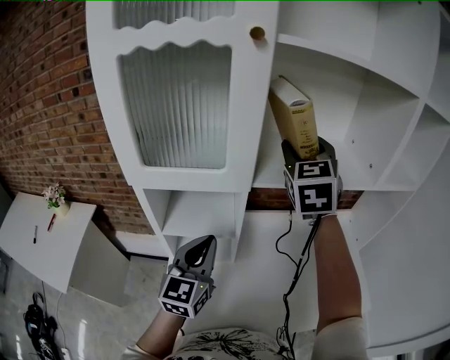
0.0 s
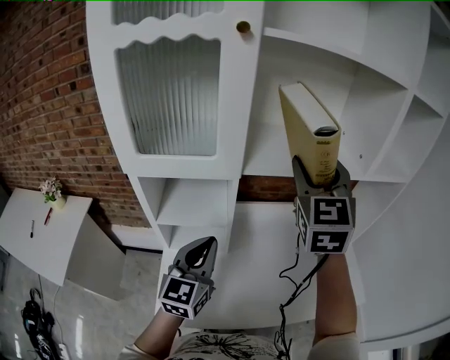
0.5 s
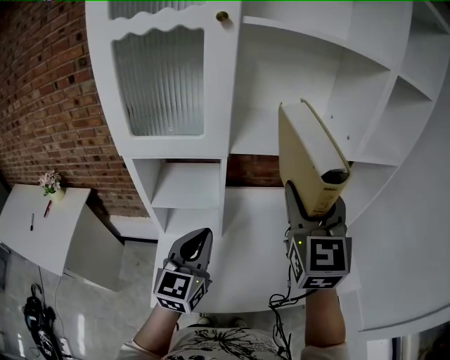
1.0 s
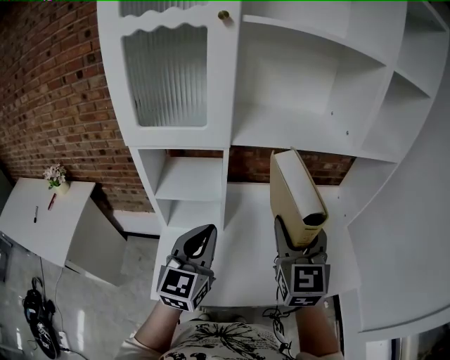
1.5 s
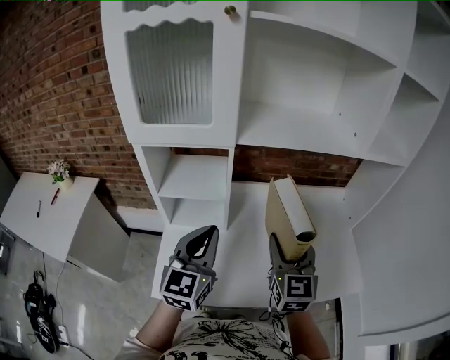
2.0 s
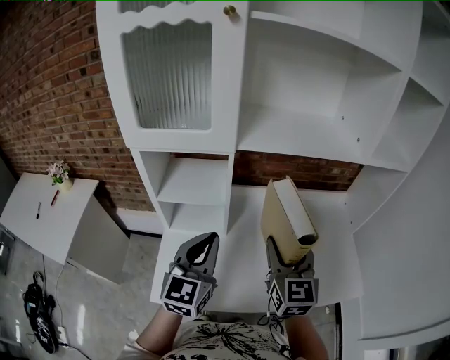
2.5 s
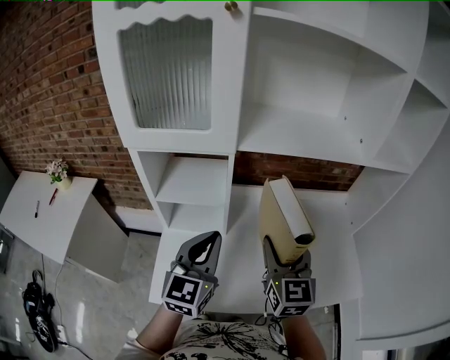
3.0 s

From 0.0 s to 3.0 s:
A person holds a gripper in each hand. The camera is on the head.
From 0.0 s to 1.5 s: The right gripper travels backward and downward by roughly 30 cm. Meanwhile the left gripper is displaced backward and to the right by some 15 cm.
From 1.5 s to 3.0 s: The right gripper goes some 10 cm downward.

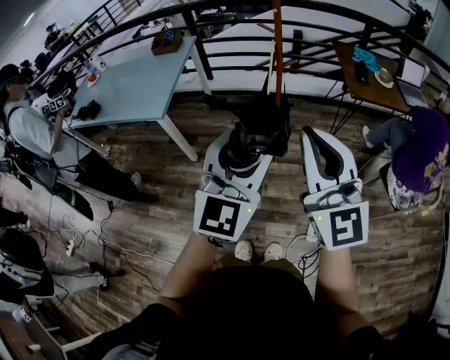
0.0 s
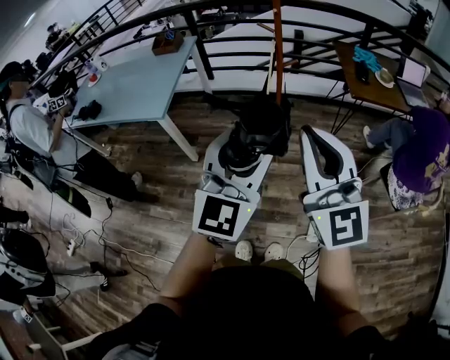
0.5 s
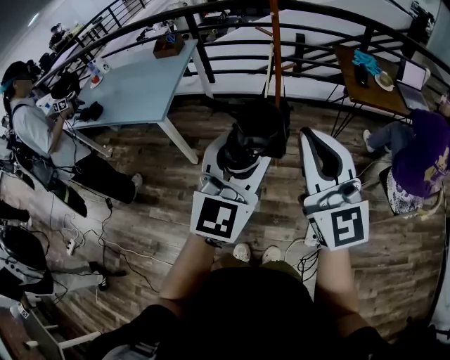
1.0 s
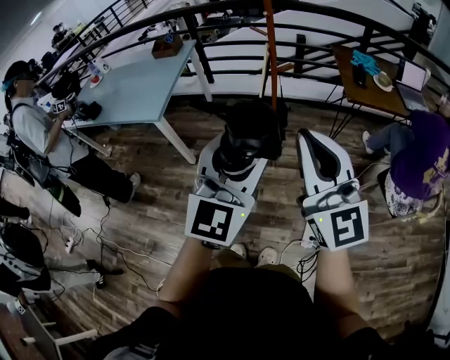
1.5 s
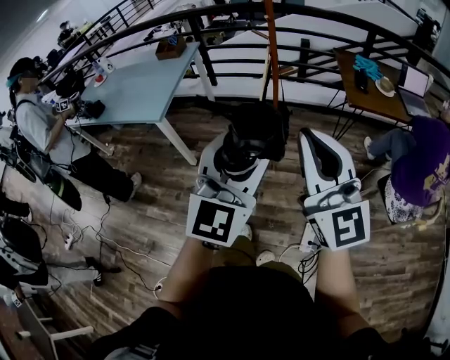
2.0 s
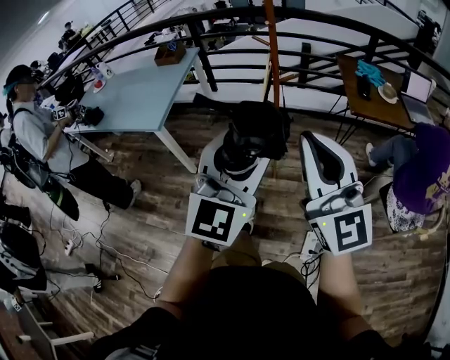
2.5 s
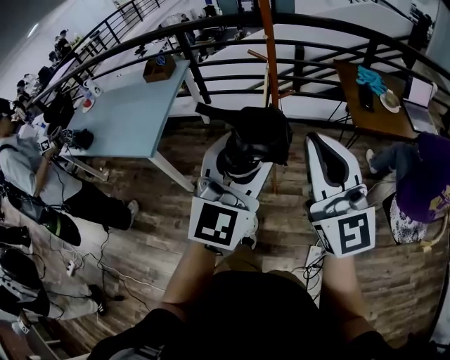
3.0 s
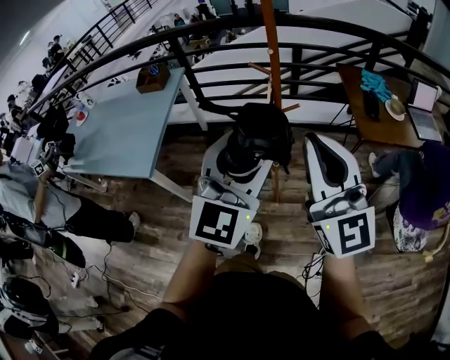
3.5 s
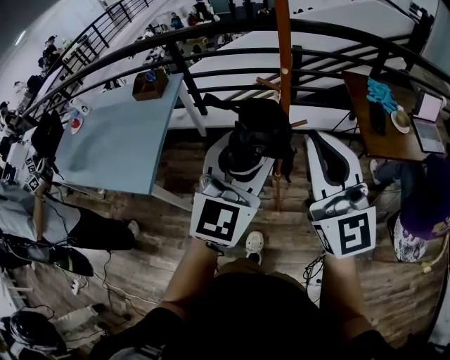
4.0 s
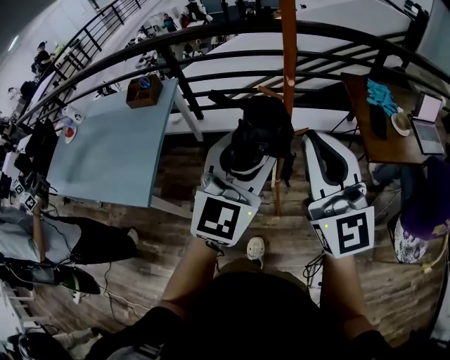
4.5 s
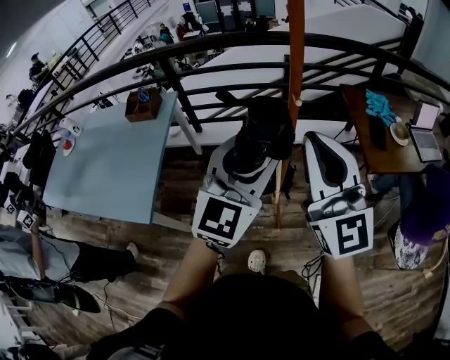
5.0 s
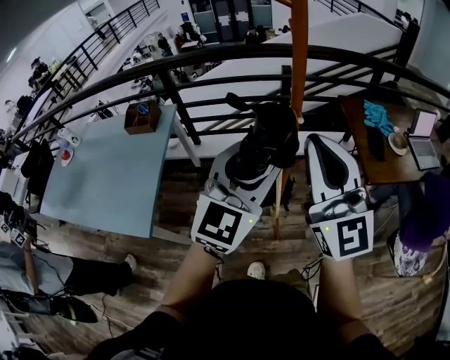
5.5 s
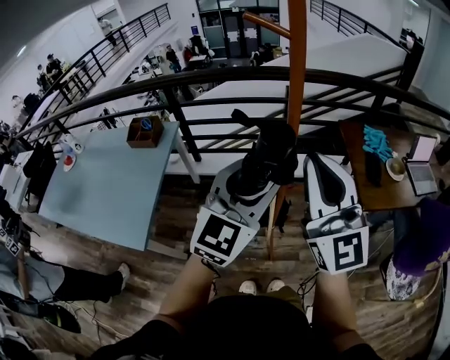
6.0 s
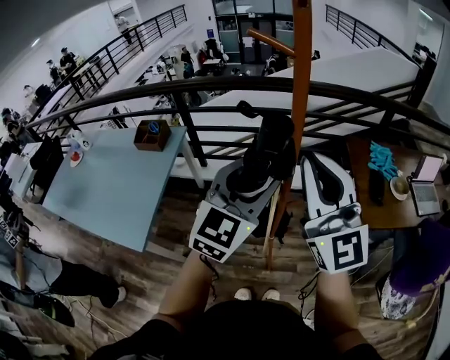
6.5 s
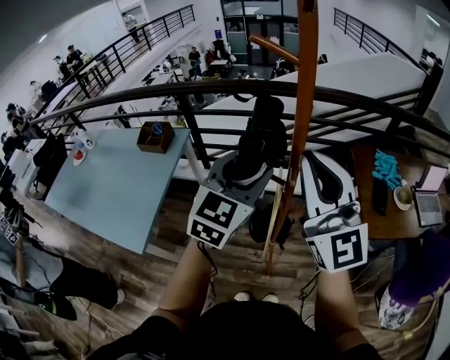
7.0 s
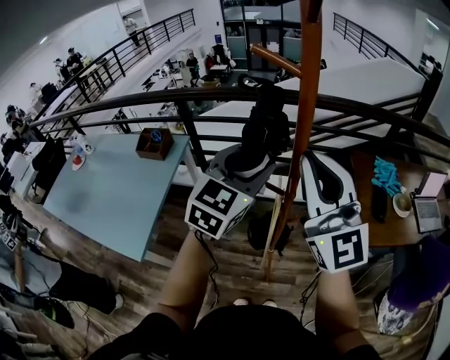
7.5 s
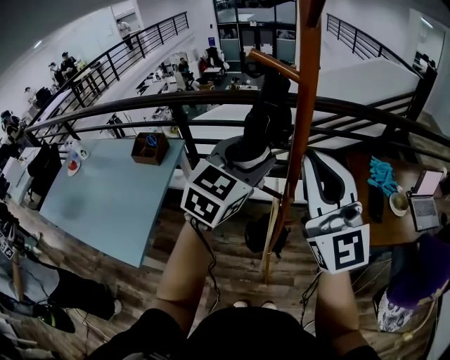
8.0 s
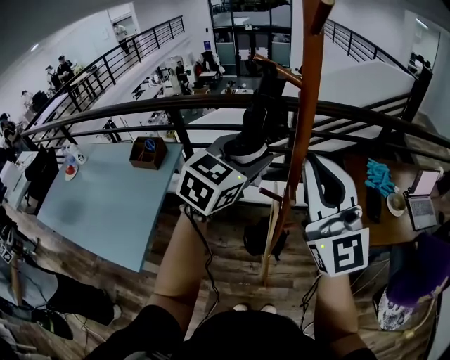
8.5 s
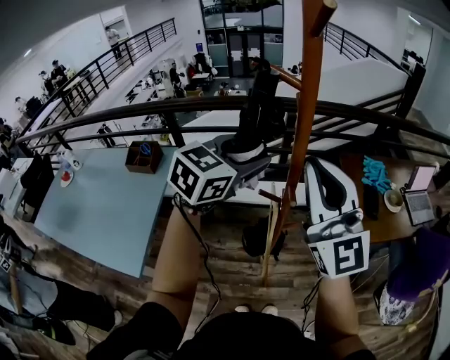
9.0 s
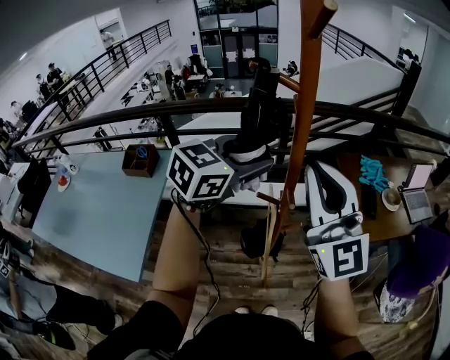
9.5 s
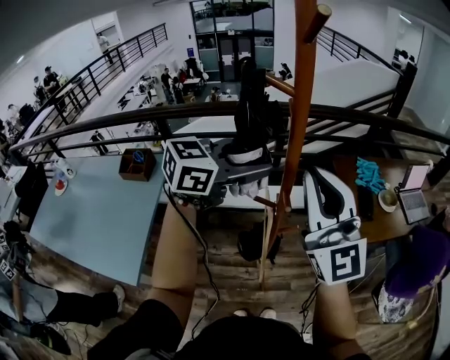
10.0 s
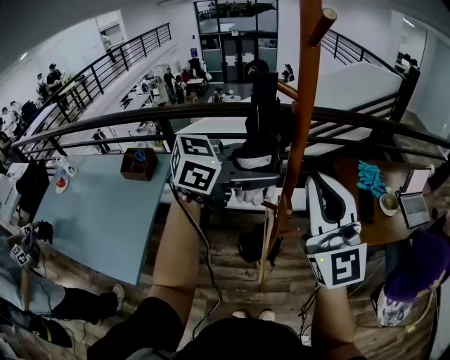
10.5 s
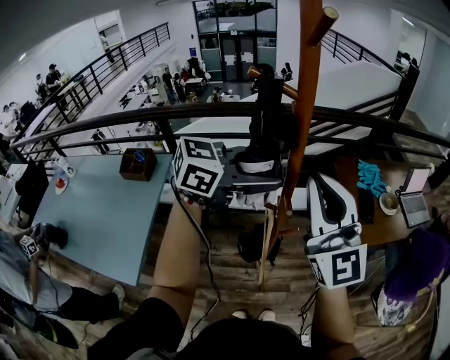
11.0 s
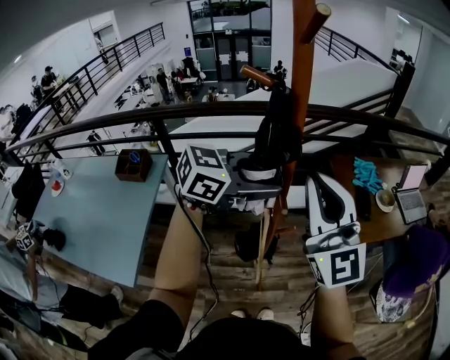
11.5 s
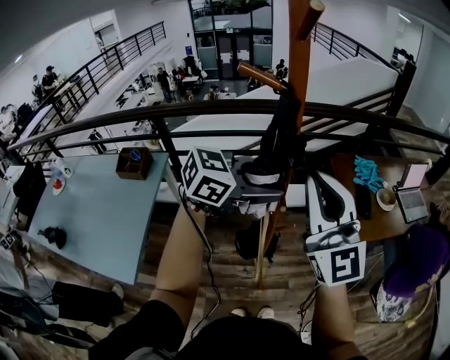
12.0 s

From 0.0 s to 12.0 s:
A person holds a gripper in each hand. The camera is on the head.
From 0.0 s to 2.0 s: The two grippers go about 5 cm to the right.
From 2.0 s to 4.0 s: The two grippers go roughly 35 cm forward.
From 4.0 s to 6.0 s: The two grippers go approximately 15 cm forward.
From 6.0 s to 8.0 s: The left gripper is displaced forward by about 15 cm, while the right gripper moves forward, roughly 10 cm.
From 8.0 s to 10.0 s: The left gripper rotates some 40 degrees.
From 10.0 s to 12.0 s: The left gripper travels to the right and downward by roughly 10 cm.

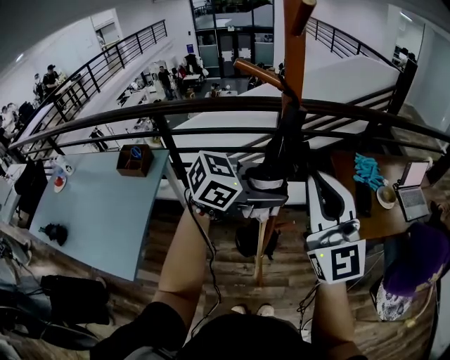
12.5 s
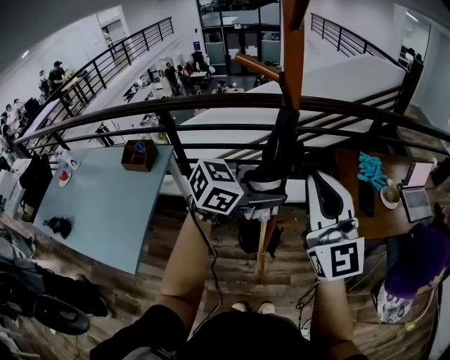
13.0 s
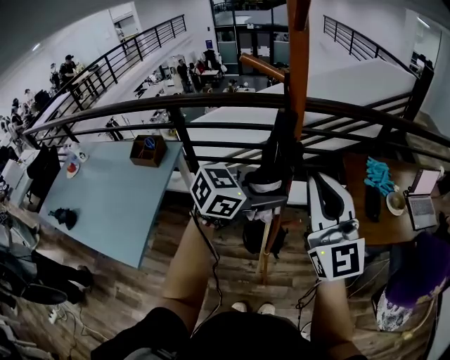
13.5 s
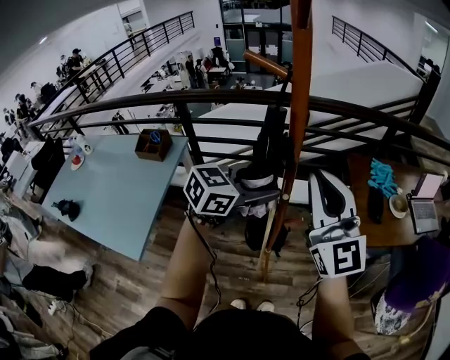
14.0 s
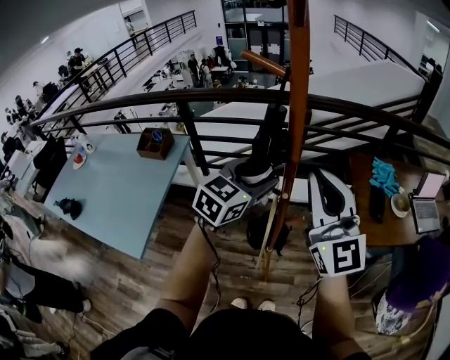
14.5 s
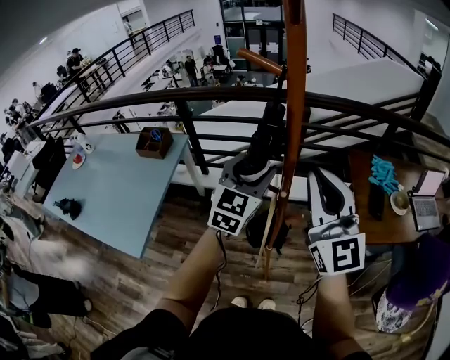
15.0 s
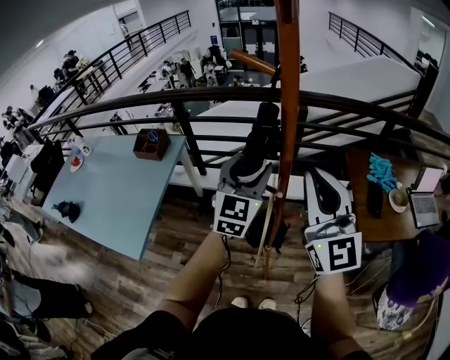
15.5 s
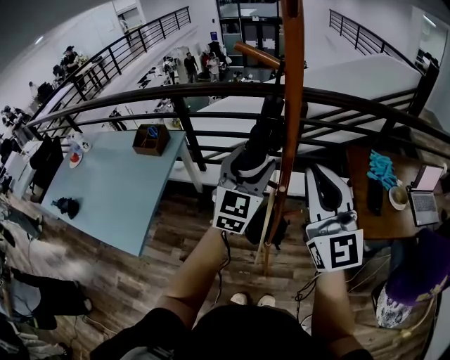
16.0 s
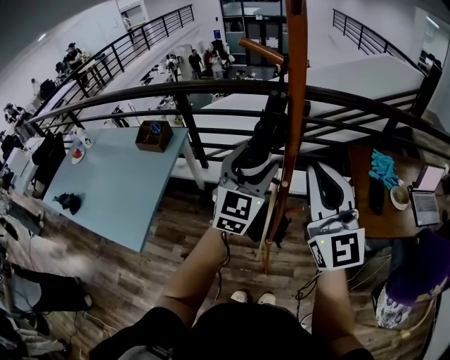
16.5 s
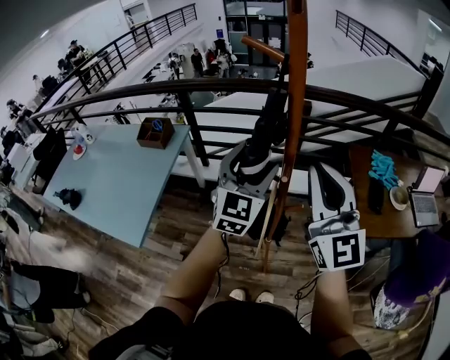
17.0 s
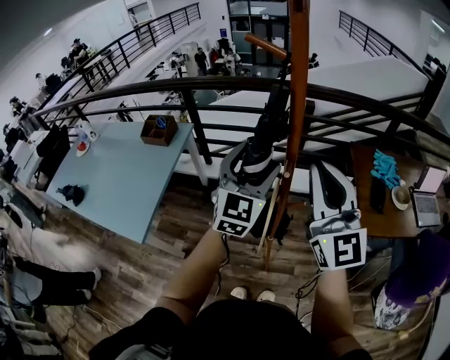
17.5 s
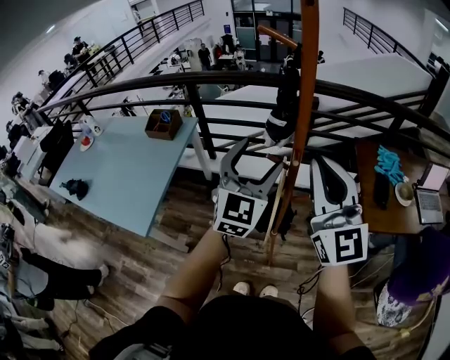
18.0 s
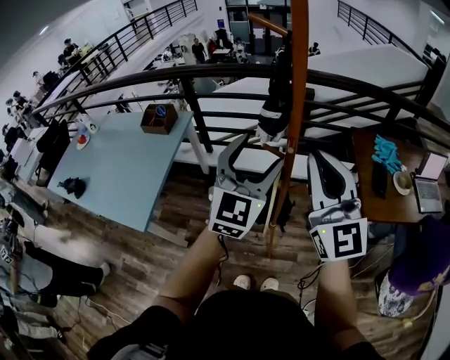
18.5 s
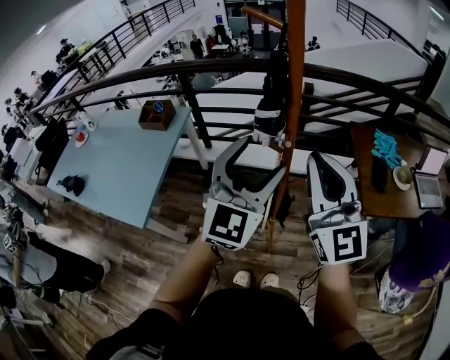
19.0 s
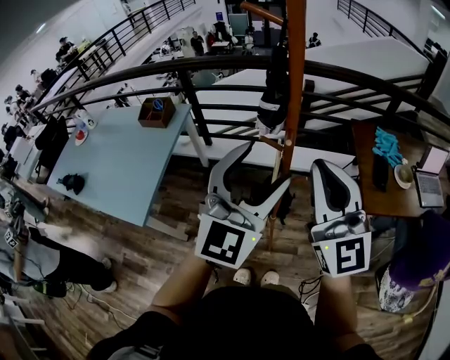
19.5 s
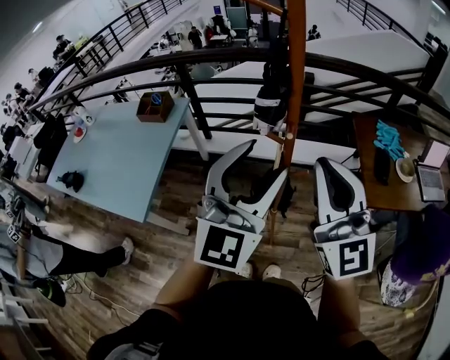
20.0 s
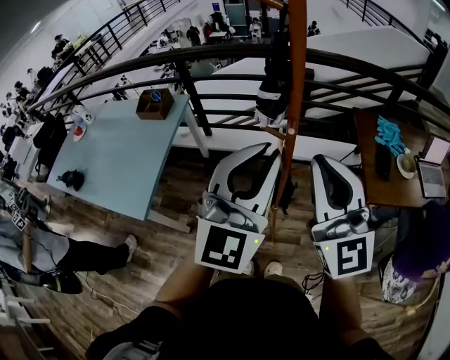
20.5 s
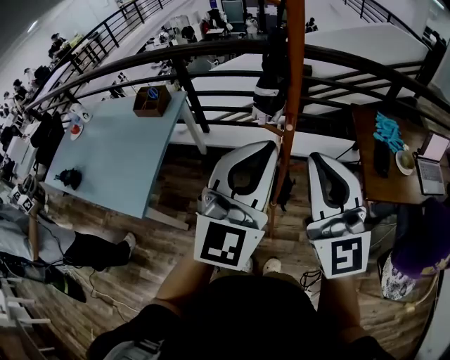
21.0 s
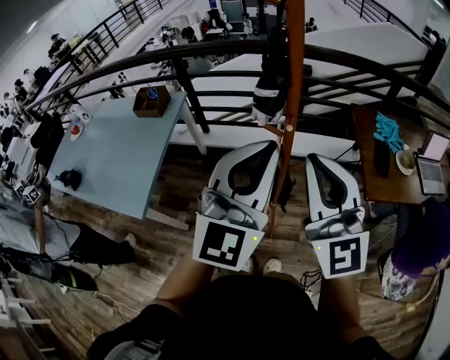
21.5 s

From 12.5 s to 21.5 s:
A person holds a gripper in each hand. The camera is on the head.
From 12.5 s to 14.5 s: The left gripper changes place by roughly 5 cm, and swivels some 40 degrees.
From 14.5 s to 17.0 s: The left gripper changes its angle by approximately 30 degrees.
From 17.0 s to 19.5 s: The right gripper is displaced backward by about 5 cm. Meanwhile the left gripper moves backward, about 15 cm.
From 19.5 s to 21.5 s: The left gripper closes its fingers.

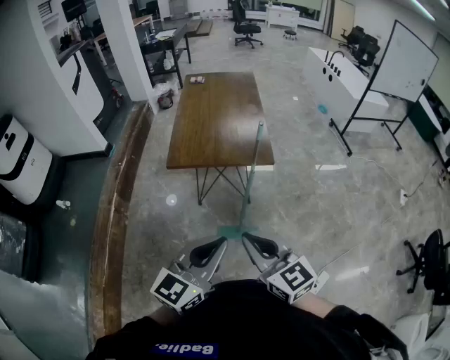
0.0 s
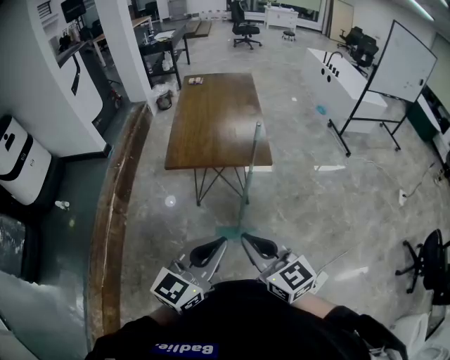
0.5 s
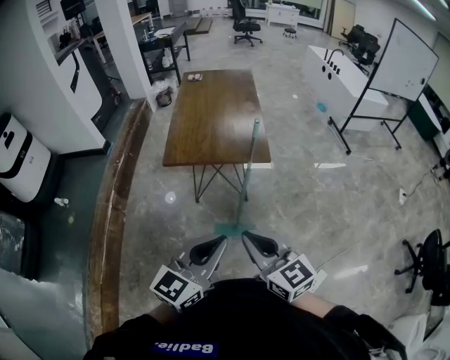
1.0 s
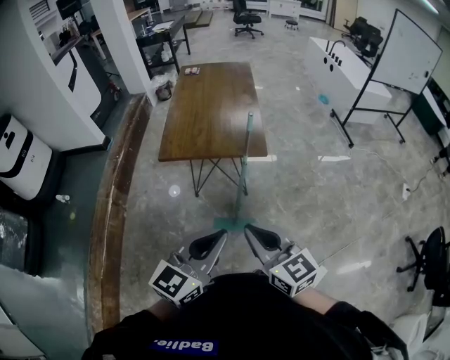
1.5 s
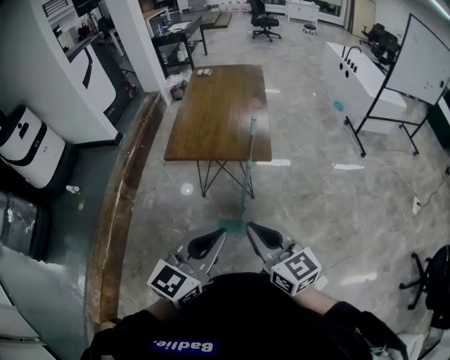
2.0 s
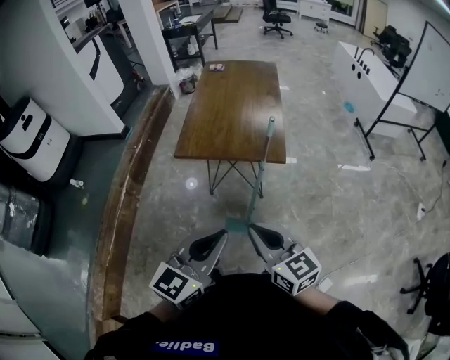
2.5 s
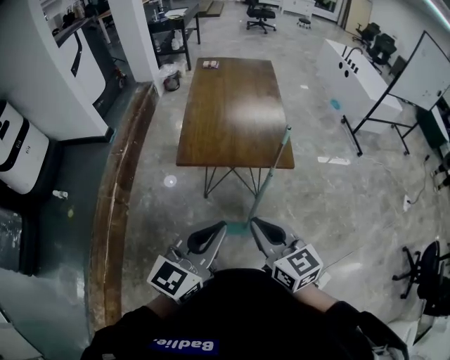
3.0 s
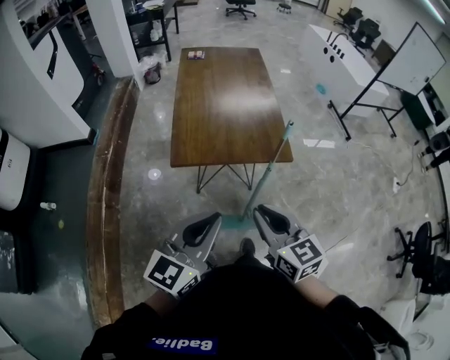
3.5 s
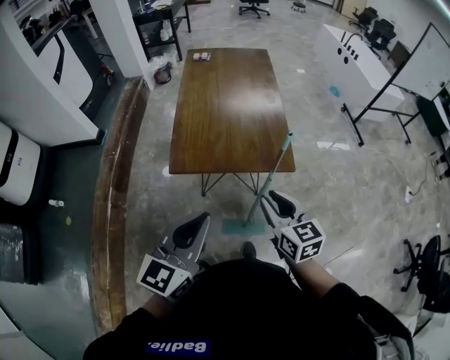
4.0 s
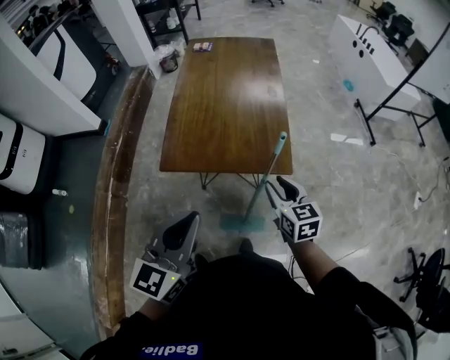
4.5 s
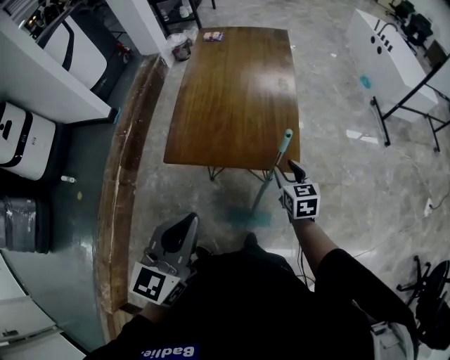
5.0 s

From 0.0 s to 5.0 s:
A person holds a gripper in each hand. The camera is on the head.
From 0.0 s to 2.5 s: The right gripper moves to the right and forward, about 10 cm.
From 2.5 s to 5.0 s: The right gripper goes approximately 40 cm forward and downward, swivels about 30 degrees, and opens its fingers, while the left gripper travels forward by roughly 20 cm.
